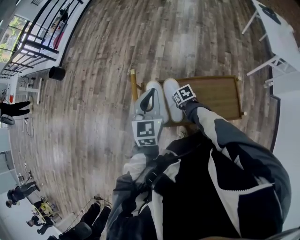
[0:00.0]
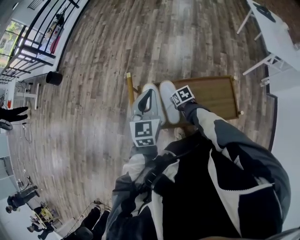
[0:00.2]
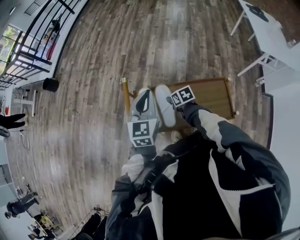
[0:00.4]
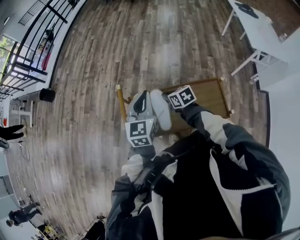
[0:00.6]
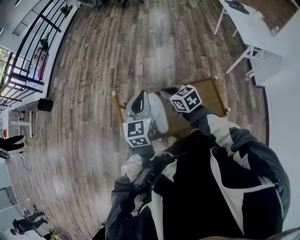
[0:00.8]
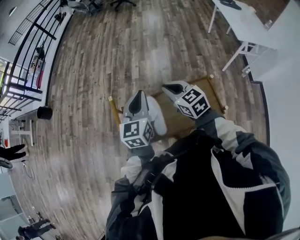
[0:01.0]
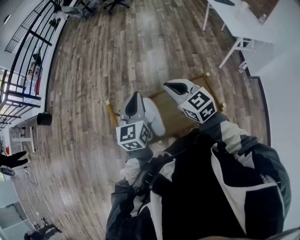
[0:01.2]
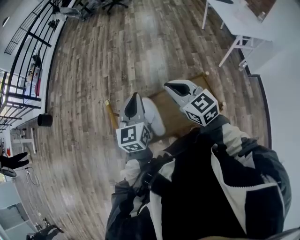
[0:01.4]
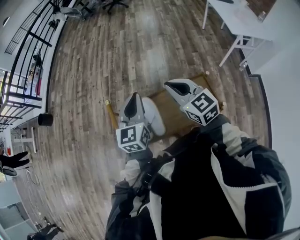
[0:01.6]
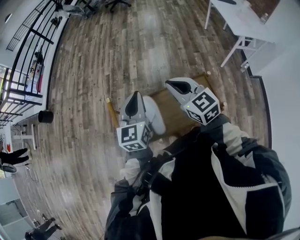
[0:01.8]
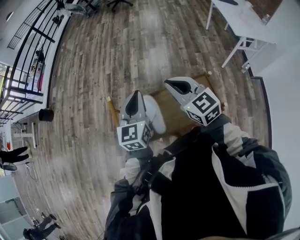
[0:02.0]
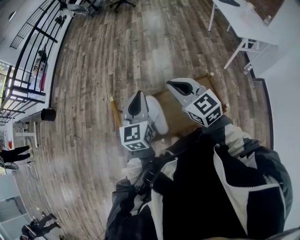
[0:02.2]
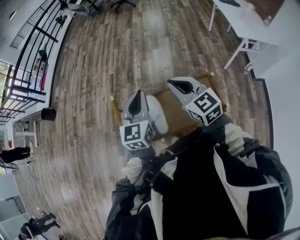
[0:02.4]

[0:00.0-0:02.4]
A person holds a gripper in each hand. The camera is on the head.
0:00.0 to 0:01.2: The left gripper moves to the right, roughly 10 cm. Meanwhile the right gripper travels upward by about 35 cm, angles its fingers upward, by roughly 40 degrees, and closes.
0:01.2 to 0:02.4: There are only small adjustments of the grippers.

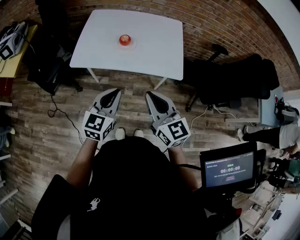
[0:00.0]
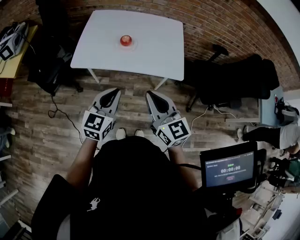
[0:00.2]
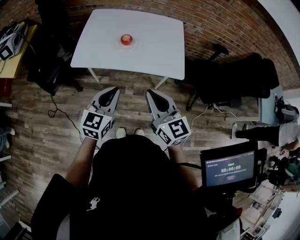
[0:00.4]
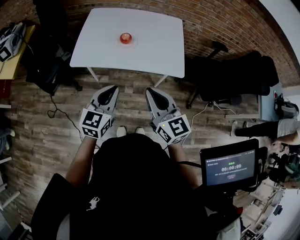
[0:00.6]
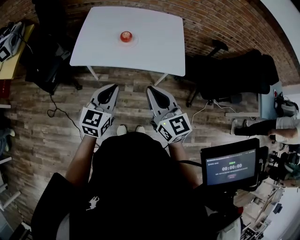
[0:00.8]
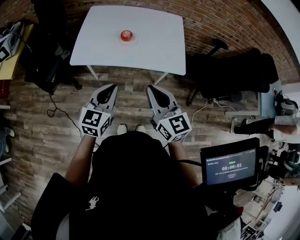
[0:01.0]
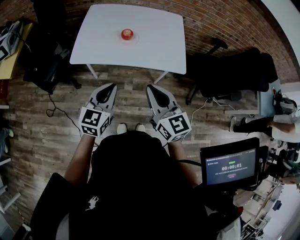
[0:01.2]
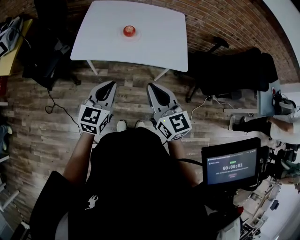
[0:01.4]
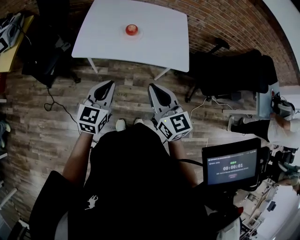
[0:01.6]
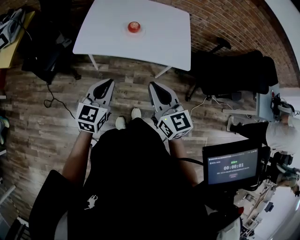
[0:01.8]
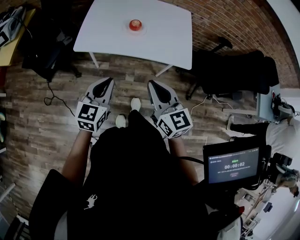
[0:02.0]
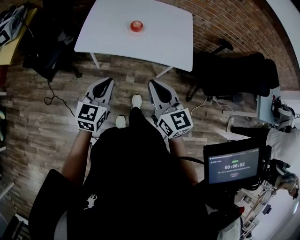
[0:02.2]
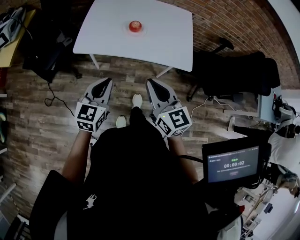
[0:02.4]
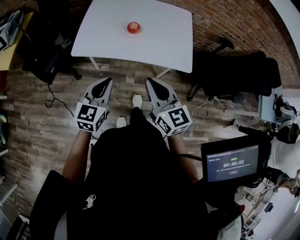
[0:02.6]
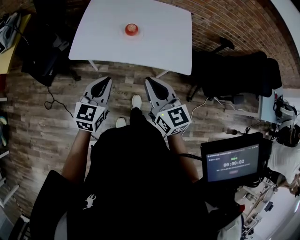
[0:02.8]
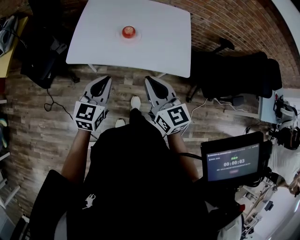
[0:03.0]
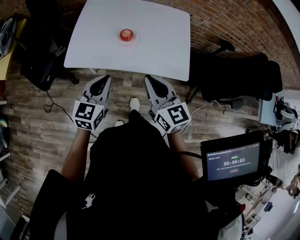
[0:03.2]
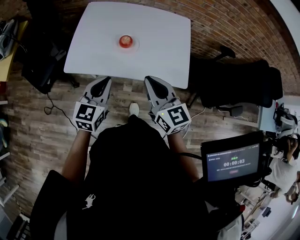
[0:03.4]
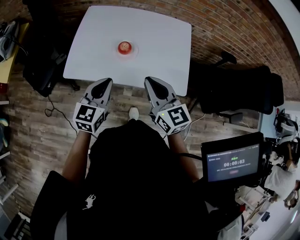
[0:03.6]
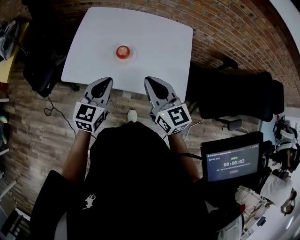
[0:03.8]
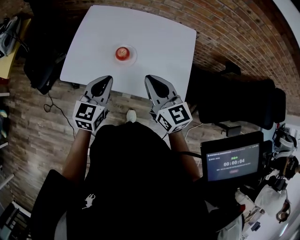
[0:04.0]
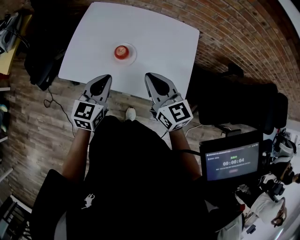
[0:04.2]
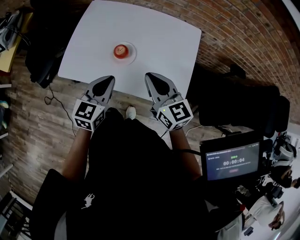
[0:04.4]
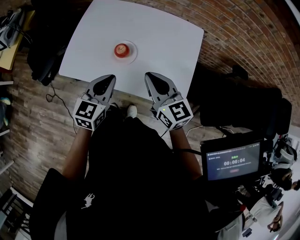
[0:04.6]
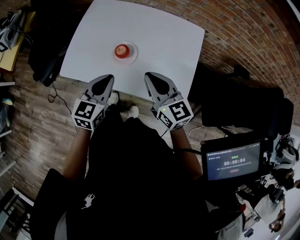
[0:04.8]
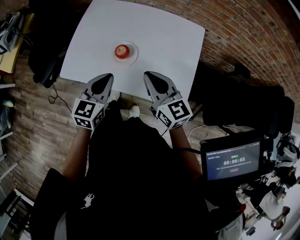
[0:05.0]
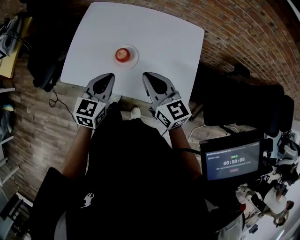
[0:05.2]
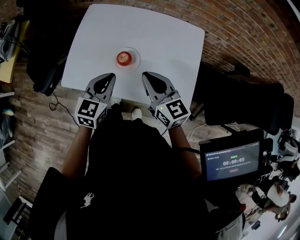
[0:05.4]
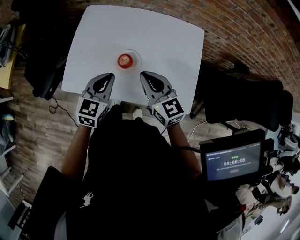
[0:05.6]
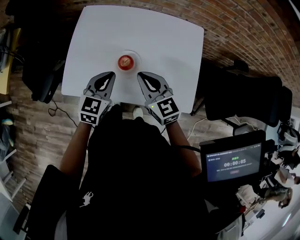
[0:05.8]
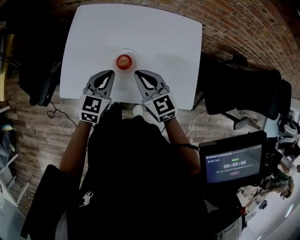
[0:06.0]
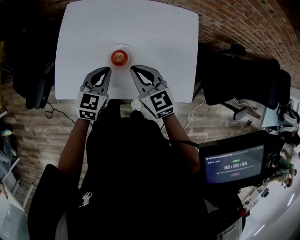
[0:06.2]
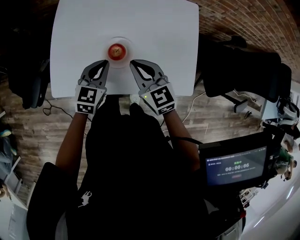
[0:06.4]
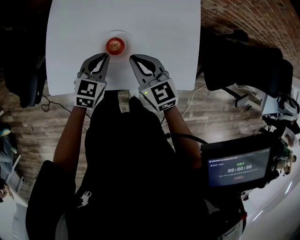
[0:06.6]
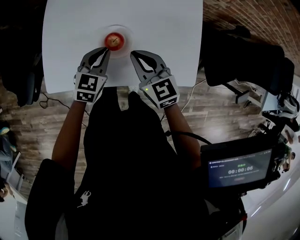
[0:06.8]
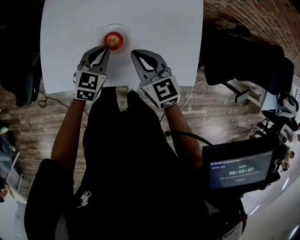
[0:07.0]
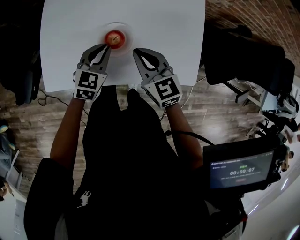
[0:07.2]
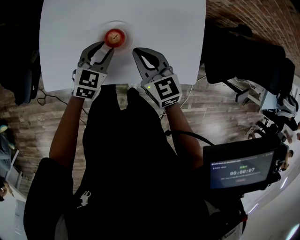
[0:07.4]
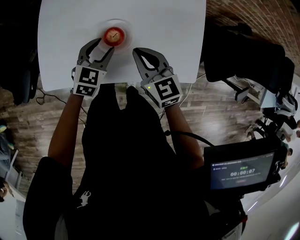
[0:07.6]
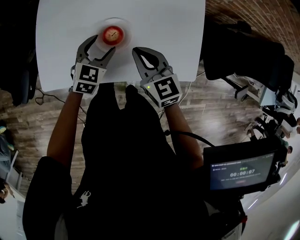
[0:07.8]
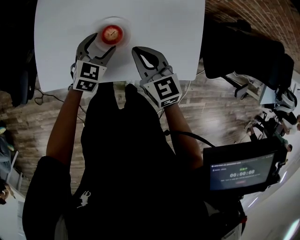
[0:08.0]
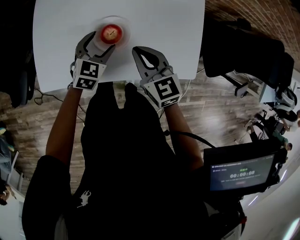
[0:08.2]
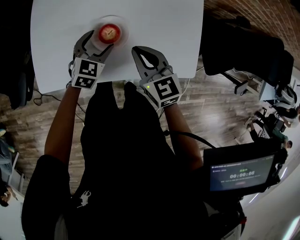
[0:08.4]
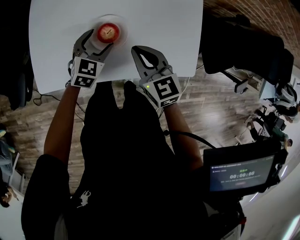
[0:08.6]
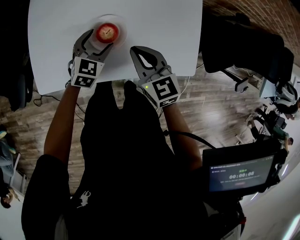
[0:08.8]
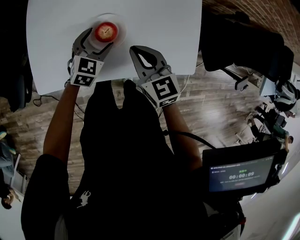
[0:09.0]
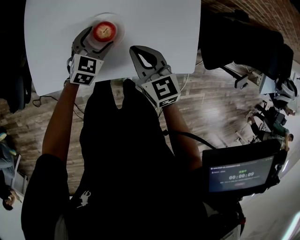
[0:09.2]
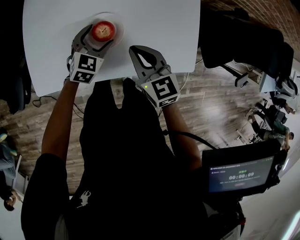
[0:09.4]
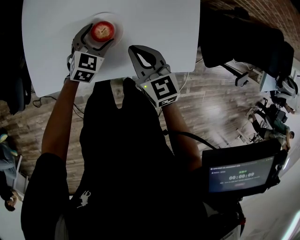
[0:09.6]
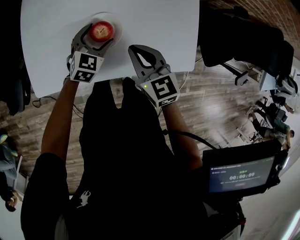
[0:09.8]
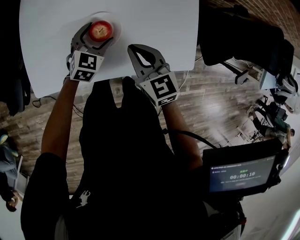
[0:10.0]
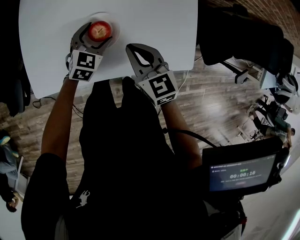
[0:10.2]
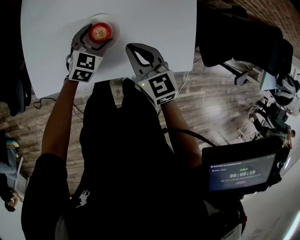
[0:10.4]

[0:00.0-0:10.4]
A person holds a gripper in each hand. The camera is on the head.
0:00.0 to 0:01.4: The left gripper travels to the left by about 5 cm.
0:01.4 to 0:03.0: Both grippers travel together forward, some 10 cm.
0:03.0 to 0:04.4: The grippers both shift forward and to the right by approximately 20 cm.
0:04.4 to 0:06.0: The right gripper is displaced forward, to the left and downward by about 15 cm. Meanwhile the left gripper moves forward and downward, roughly 15 cm.
0:06.0 to 0:07.4: The left gripper travels downward by some 10 cm. Meanwhile the right gripper ends up roughly 5 cm from where it was.
0:07.4 to 0:09.0: The left gripper travels downward by about 5 cm, and opens its fingers.
0:09.0 to 0:10.4: The grippers make only small movements.

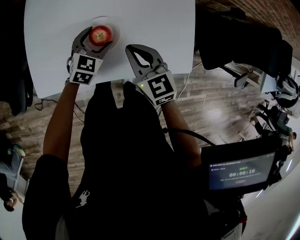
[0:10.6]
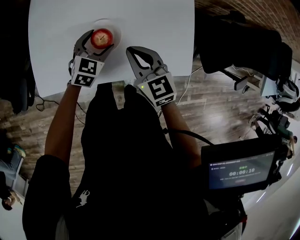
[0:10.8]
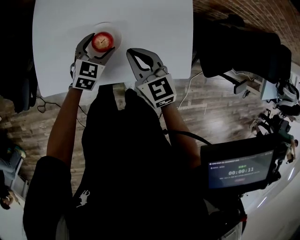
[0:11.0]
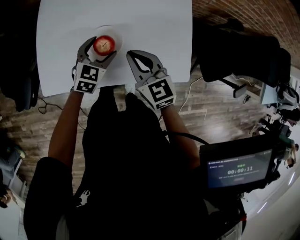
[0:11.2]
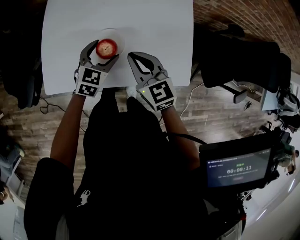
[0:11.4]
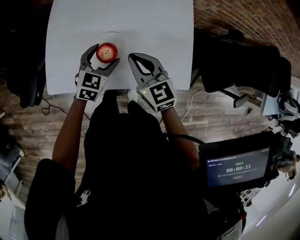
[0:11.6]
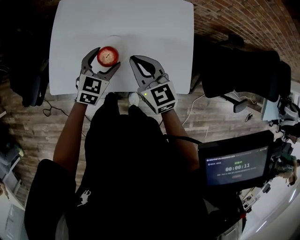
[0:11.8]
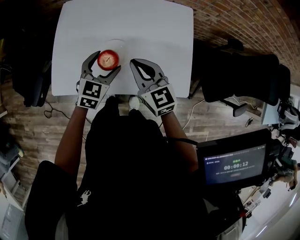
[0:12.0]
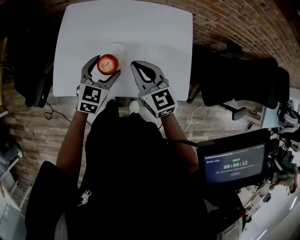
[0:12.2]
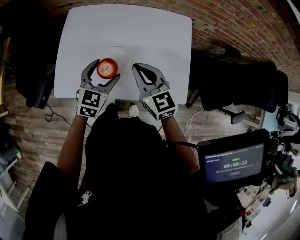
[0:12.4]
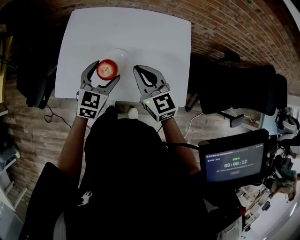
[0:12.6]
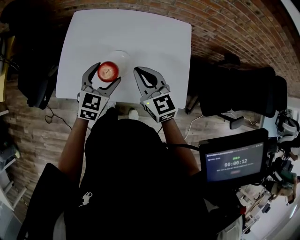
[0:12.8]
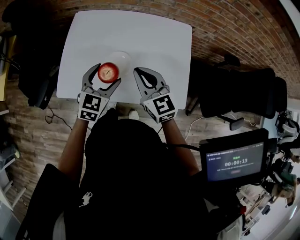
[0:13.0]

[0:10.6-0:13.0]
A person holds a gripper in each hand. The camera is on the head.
0:10.6 to 0:11.8: The grippers both shift upward by approximately 10 cm.
0:11.8 to 0:13.0: The left gripper is displaced upward by approximately 5 cm.

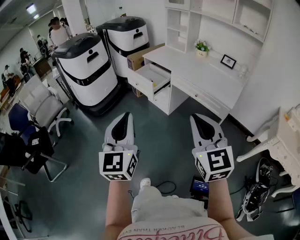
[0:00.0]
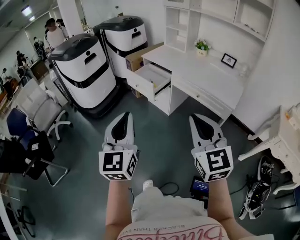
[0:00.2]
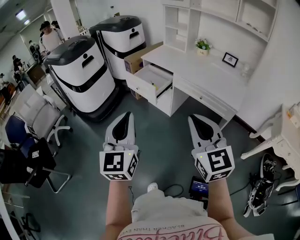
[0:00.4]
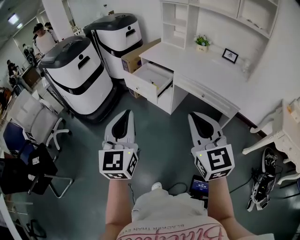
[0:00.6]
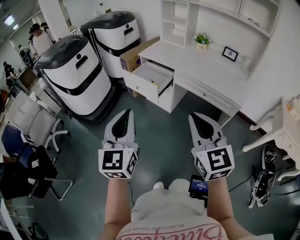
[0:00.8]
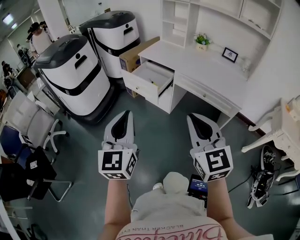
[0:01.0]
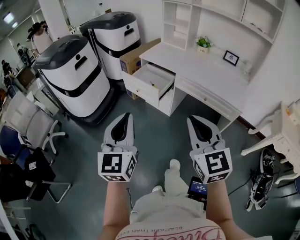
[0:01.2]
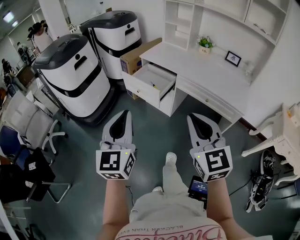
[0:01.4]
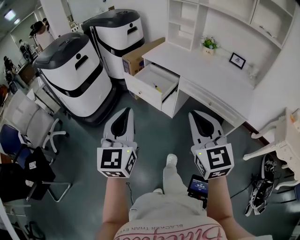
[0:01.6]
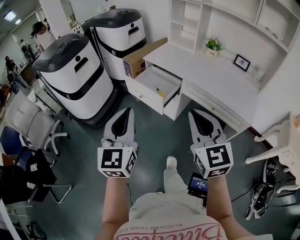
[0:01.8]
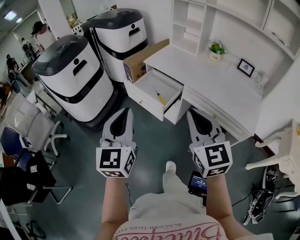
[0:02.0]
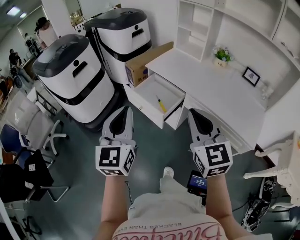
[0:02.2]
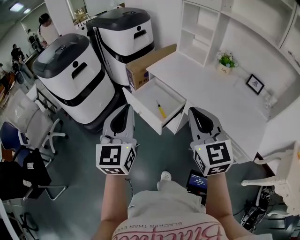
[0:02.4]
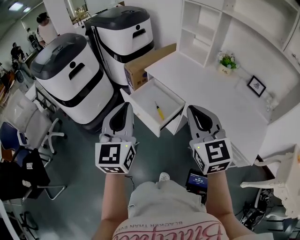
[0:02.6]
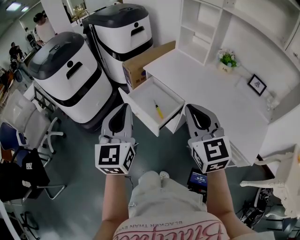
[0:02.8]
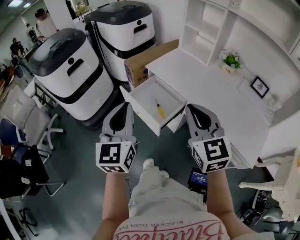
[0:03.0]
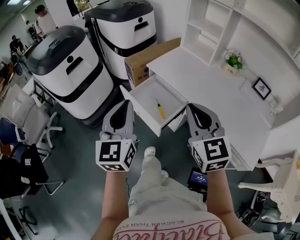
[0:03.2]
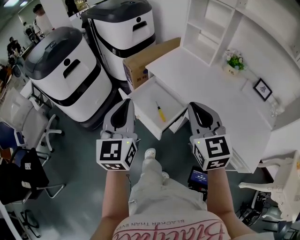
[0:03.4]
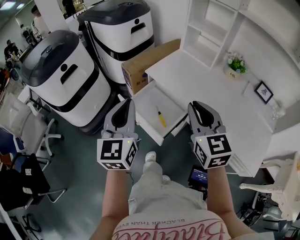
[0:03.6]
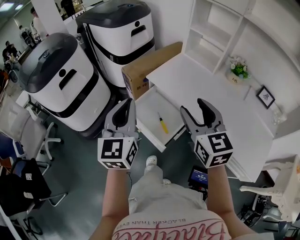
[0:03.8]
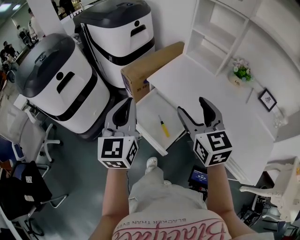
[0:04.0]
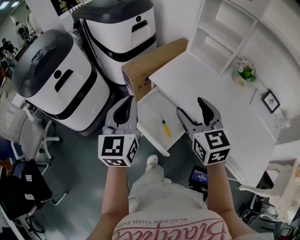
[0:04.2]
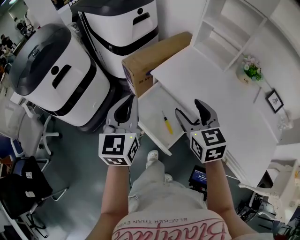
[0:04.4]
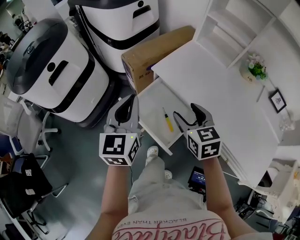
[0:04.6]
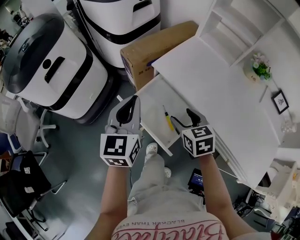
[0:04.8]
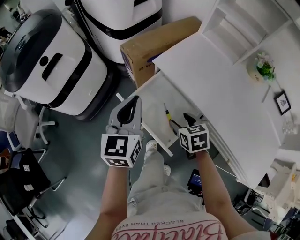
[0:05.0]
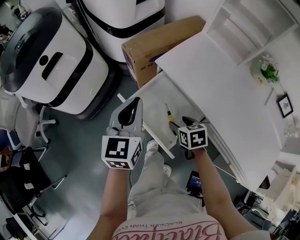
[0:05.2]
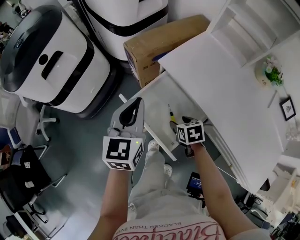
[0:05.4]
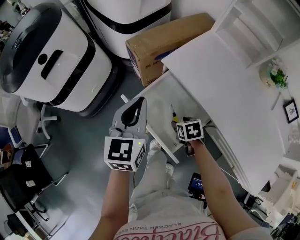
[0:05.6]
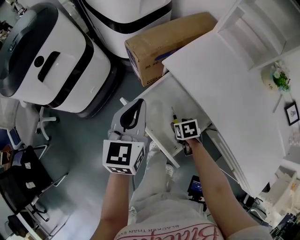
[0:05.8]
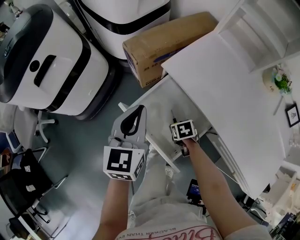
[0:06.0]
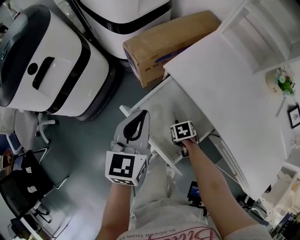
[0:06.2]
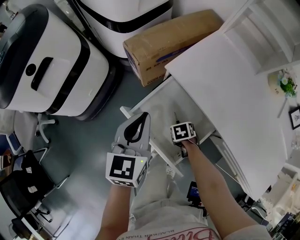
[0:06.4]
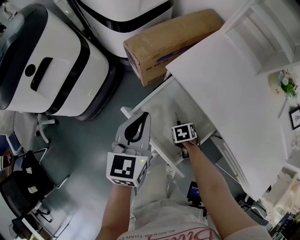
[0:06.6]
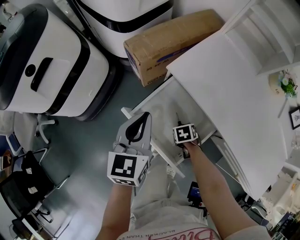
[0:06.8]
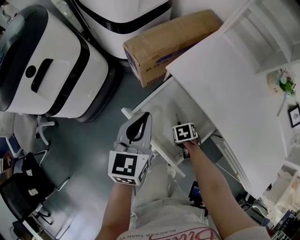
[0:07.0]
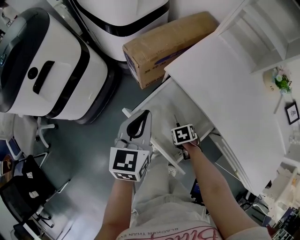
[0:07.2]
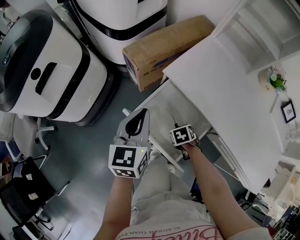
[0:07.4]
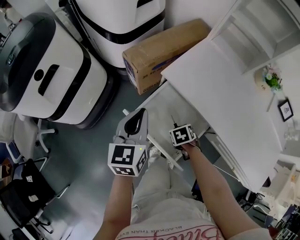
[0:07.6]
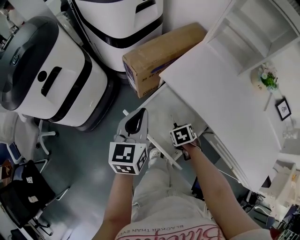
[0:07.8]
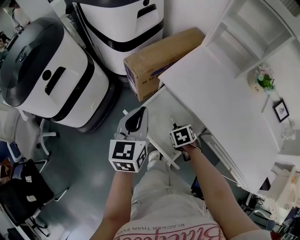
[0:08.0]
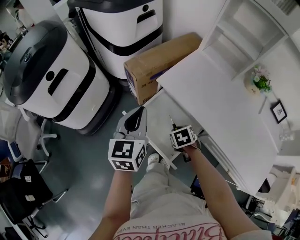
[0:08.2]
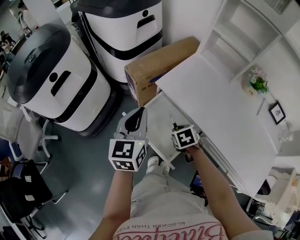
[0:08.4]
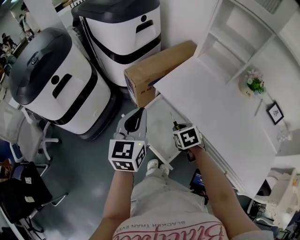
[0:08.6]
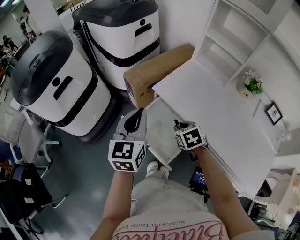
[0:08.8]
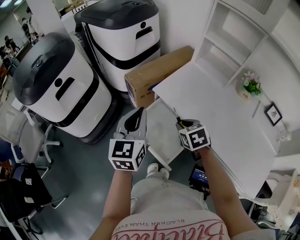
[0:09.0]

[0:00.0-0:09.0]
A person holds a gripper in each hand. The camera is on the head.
0:00.0 to 0:01.6: Both grippers travel together forward and to the left, roughly 25 cm.
0:01.6 to 0:03.0: The grippers both shift forward by roughly 25 cm.
0:03.0 to 0:04.4: The right gripper moves forward and downward, some 25 cm, and opens up; the left gripper heads forward, covering some 25 cm.
0:04.4 to 0:06.0: The right gripper is displaced downward by roughly 40 cm, and tilts its fingers some 50 degrees downward; the left gripper is displaced downward and forward by about 15 cm.
0:06.0 to 0:07.6: The right gripper closes up.
0:07.6 to 0:09.0: The left gripper heads upward, covering some 10 cm. The right gripper travels upward by some 20 cm, and changes its angle by about 30 degrees.
